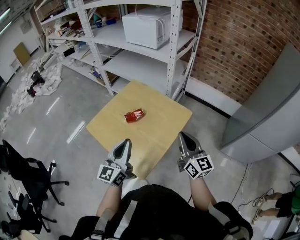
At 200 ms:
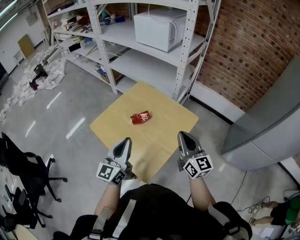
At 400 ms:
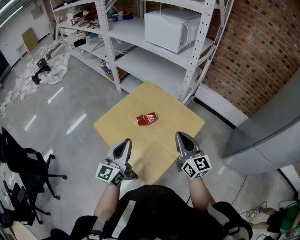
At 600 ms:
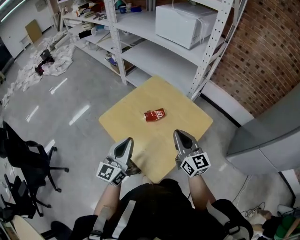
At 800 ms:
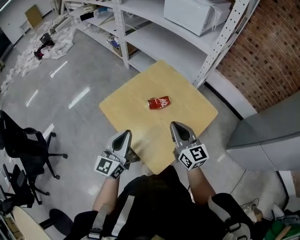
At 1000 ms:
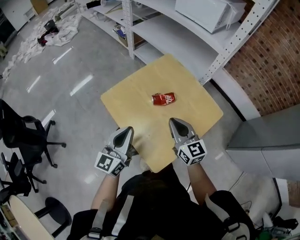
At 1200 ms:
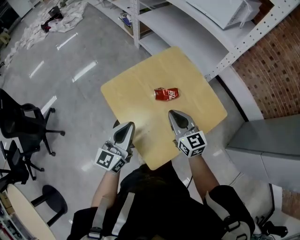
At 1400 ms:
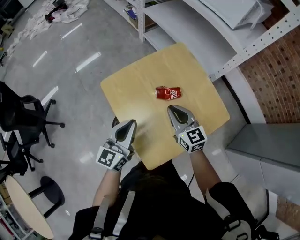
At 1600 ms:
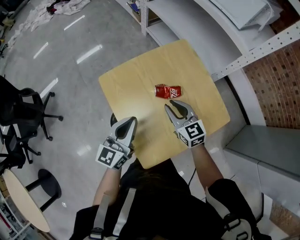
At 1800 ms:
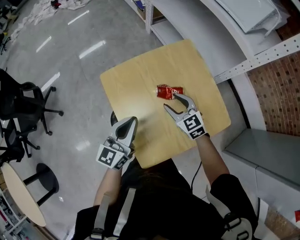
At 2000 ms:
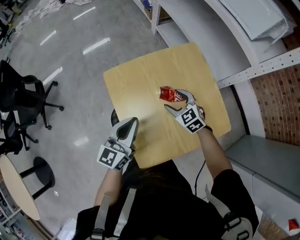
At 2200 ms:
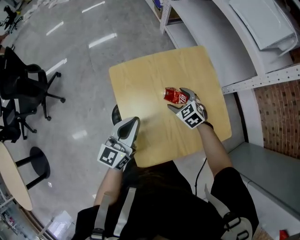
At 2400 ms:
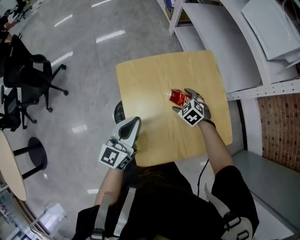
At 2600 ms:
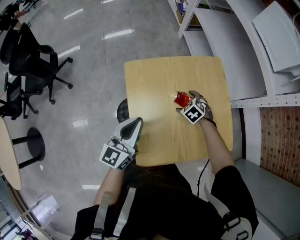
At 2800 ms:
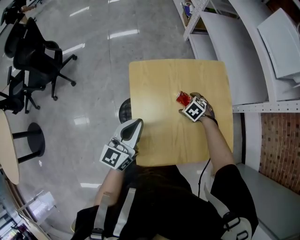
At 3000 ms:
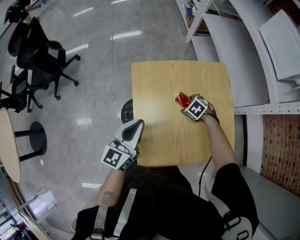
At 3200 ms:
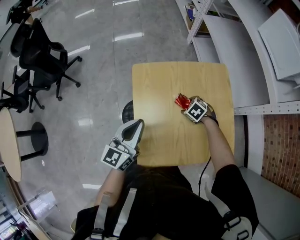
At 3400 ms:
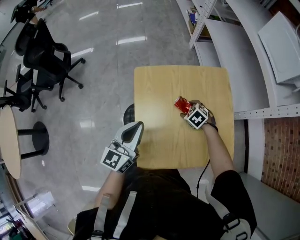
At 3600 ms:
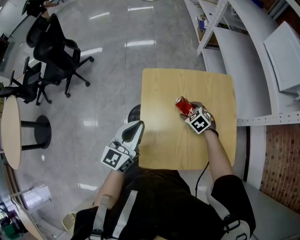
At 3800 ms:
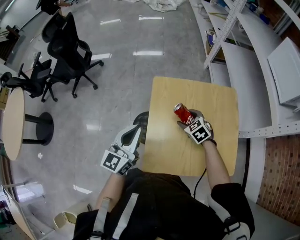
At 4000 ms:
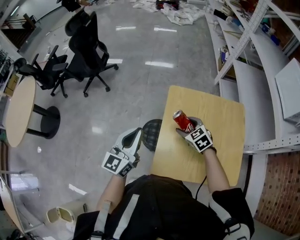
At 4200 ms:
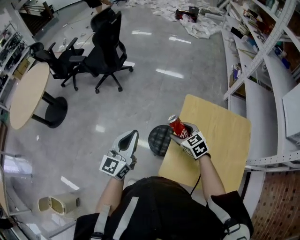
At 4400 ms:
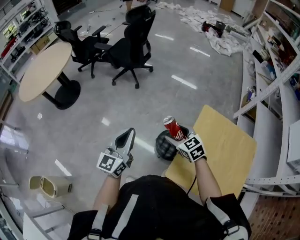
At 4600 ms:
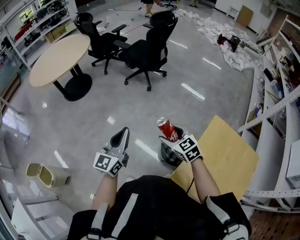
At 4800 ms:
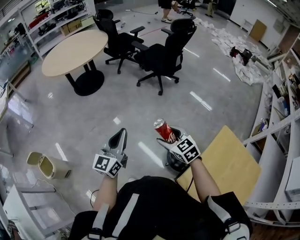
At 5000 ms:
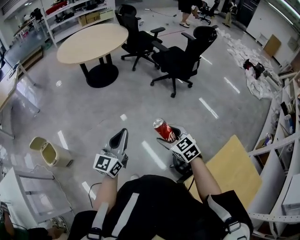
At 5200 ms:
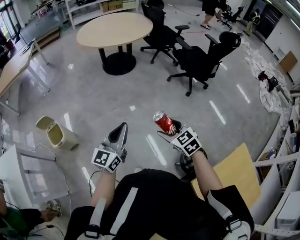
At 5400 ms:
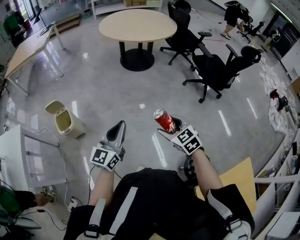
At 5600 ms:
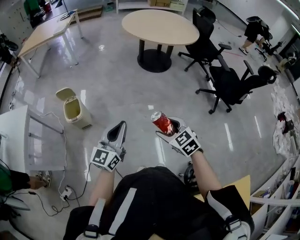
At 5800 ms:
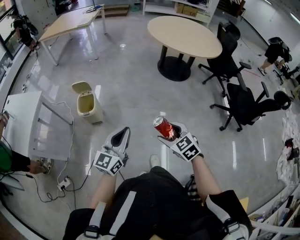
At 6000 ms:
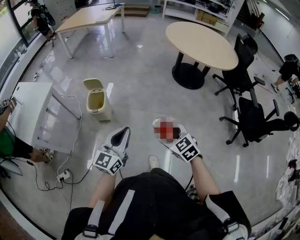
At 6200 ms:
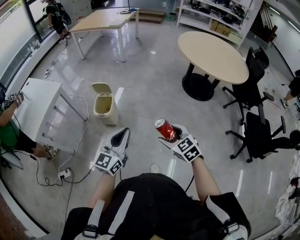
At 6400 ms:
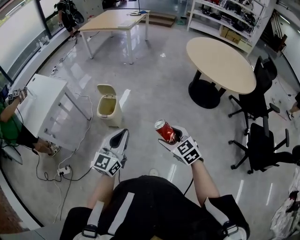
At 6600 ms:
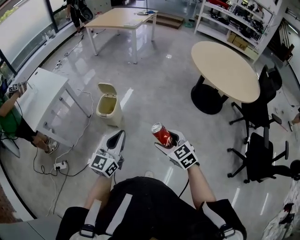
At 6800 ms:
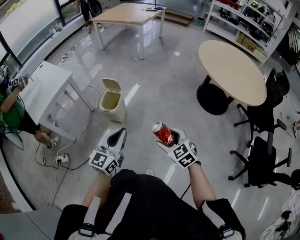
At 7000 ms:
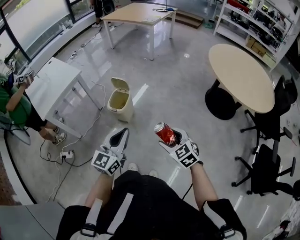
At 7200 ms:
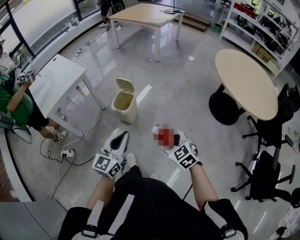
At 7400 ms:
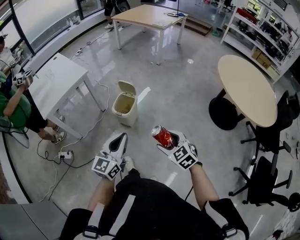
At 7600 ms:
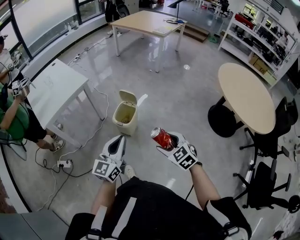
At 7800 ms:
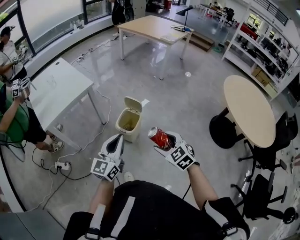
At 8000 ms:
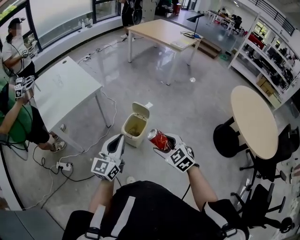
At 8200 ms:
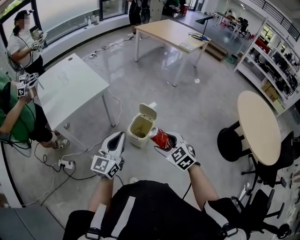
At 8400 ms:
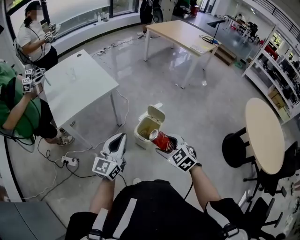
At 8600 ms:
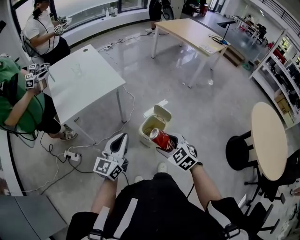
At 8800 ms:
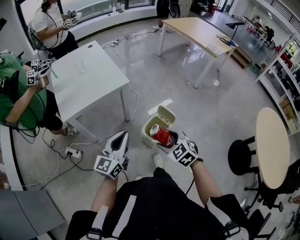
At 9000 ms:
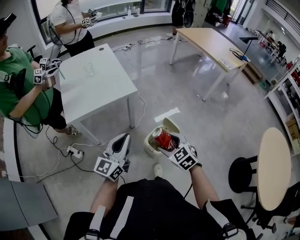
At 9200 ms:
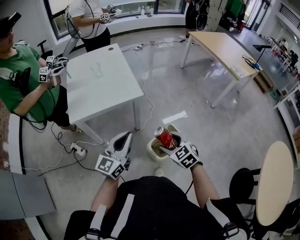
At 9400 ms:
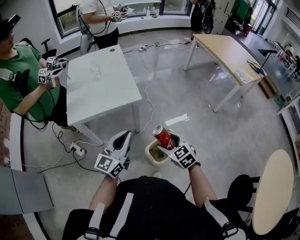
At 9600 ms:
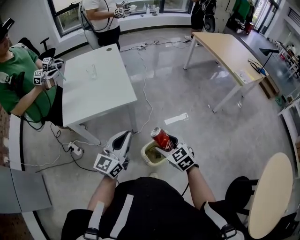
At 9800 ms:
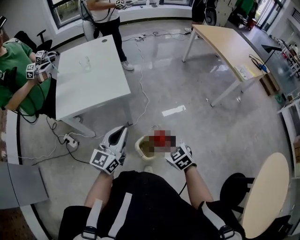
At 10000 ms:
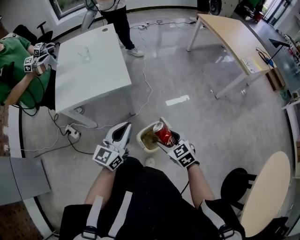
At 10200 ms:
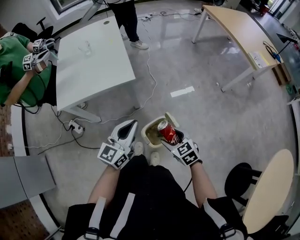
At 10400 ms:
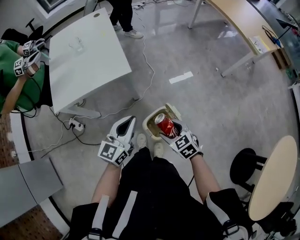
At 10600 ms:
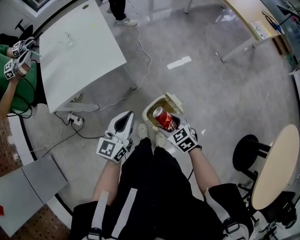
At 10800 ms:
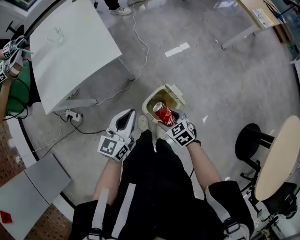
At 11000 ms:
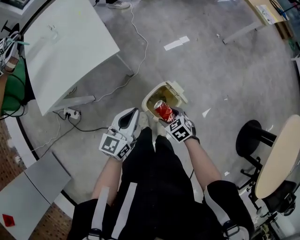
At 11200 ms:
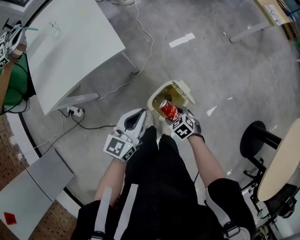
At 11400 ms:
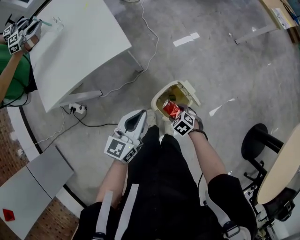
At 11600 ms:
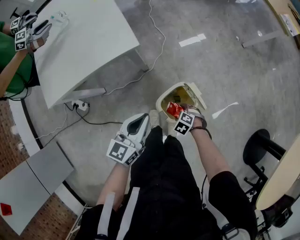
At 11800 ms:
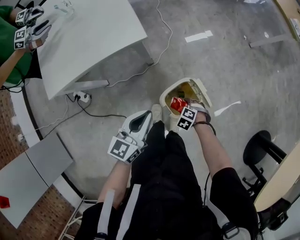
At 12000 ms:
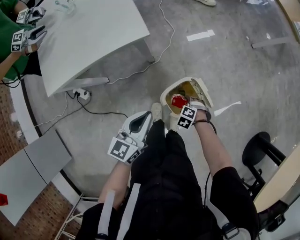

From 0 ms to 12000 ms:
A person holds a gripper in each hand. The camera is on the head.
From 0 ms to 1600 ms: The left gripper ends up approximately 20 cm from where it was, and rotates about 20 degrees. Meanwhile the right gripper moves some 35 cm, and turns by some 50 degrees.
From 1600 ms to 3000 ms: The right gripper heads downward, covering some 20 cm, tips its fingers downward by about 50 degrees, and opens up, while the left gripper rotates roughly 20 degrees.
From 3000 ms to 4400 ms: The right gripper changes place by about 50 cm, and tilts its fingers roughly 40 degrees upward. Meanwhile the left gripper ends up about 35 cm from where it was, and turns by about 40 degrees.
From 4400 ms to 6000 ms: The pair of grippers is taken roughly 60 cm. The left gripper rotates roughly 70 degrees, while the right gripper rotates about 80 degrees.
From 6000 ms to 7600 ms: The right gripper ends up approximately 25 cm from where it was, and rotates about 30 degrees. Meanwhile the left gripper changes place by some 20 cm, and changes its angle by about 30 degrees.
From 7600 ms to 9000 ms: The grippers both shift forward and to the left by roughly 35 cm. The right gripper swivels about 20 degrees. The left gripper turns by approximately 20 degrees.
From 9000 ms to 10400 ms: The right gripper goes some 15 cm downward, forward and to the right, while the left gripper travels to the right, forward and downward by some 20 cm.
From 10400 ms to 12000 ms: The right gripper goes roughly 30 cm downward, and angles its fingers downward, by about 40 degrees. Meanwhile the left gripper is displaced downward by some 15 cm.

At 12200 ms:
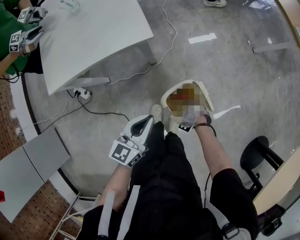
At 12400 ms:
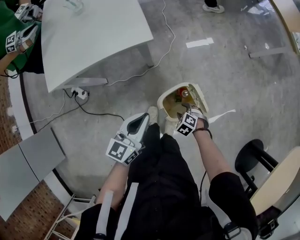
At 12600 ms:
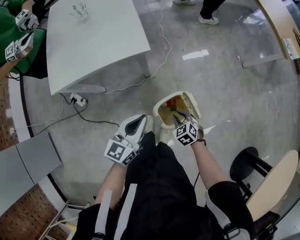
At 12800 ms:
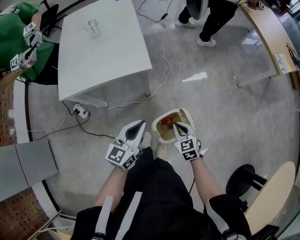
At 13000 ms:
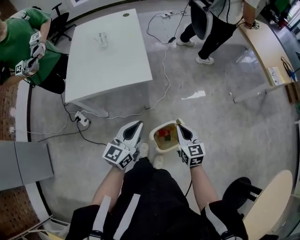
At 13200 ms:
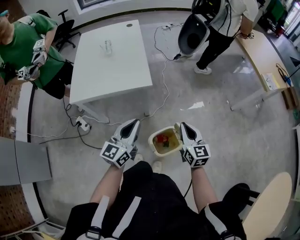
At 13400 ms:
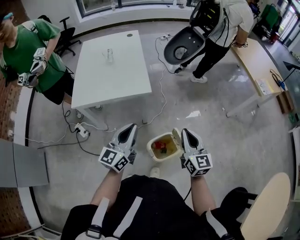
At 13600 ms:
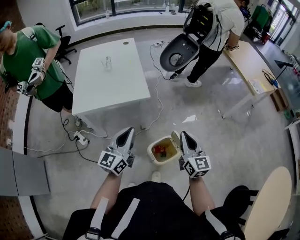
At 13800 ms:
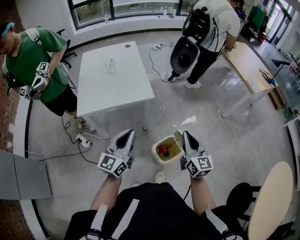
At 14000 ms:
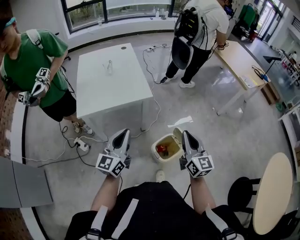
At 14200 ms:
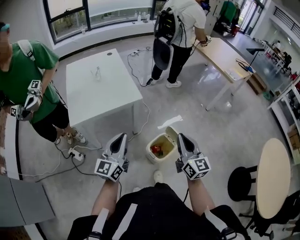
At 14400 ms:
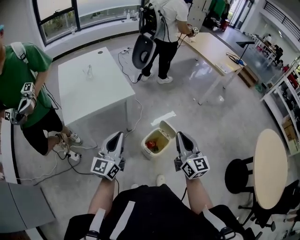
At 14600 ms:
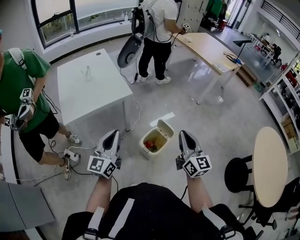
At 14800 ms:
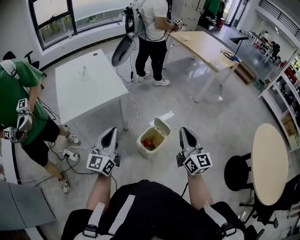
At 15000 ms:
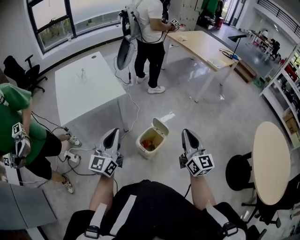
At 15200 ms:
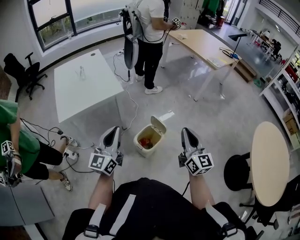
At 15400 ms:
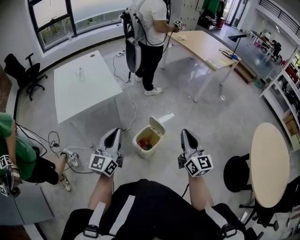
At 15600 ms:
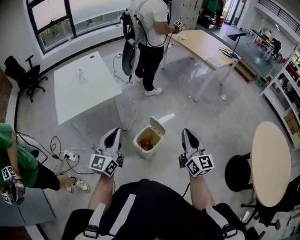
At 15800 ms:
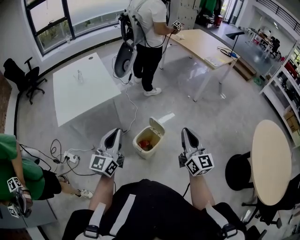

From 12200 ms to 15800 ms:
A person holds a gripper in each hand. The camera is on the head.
From 12200 ms to 14000 ms: The right gripper moves upward, about 50 cm, tips its fingers upward by approximately 80 degrees, and closes up, while the left gripper is displaced upward by about 25 cm, and rotates roughly 30 degrees.
From 14000 ms to 15800 ms: The right gripper moves to the right and backward, some 20 cm, while the left gripper goes approximately 10 cm to the right and backward.

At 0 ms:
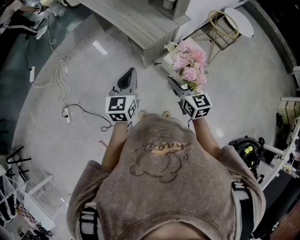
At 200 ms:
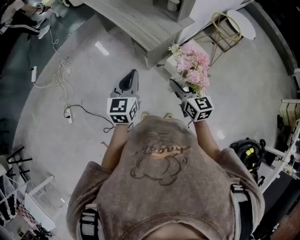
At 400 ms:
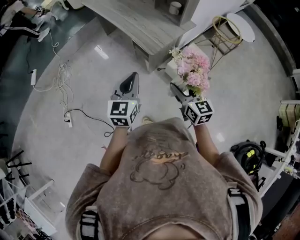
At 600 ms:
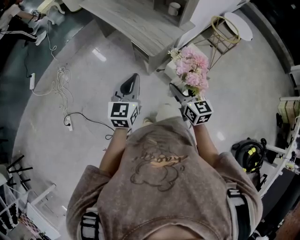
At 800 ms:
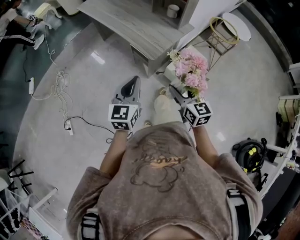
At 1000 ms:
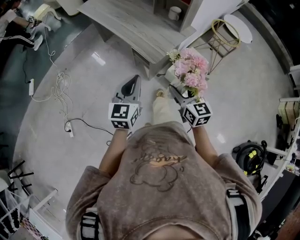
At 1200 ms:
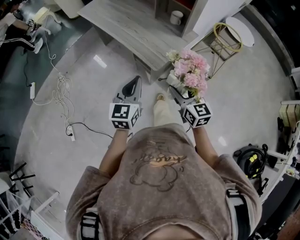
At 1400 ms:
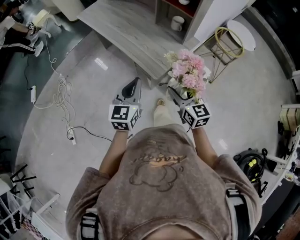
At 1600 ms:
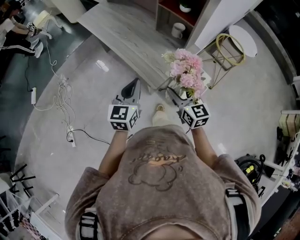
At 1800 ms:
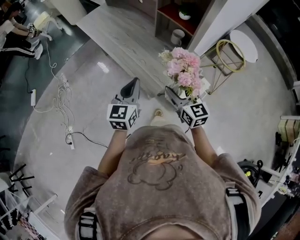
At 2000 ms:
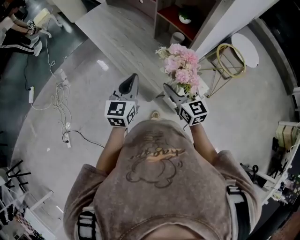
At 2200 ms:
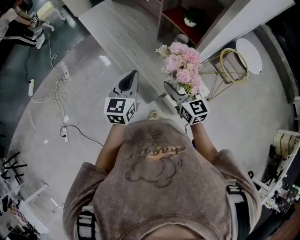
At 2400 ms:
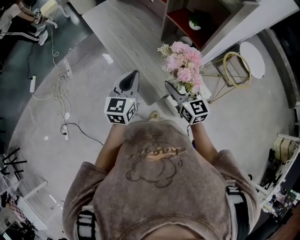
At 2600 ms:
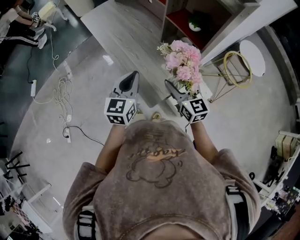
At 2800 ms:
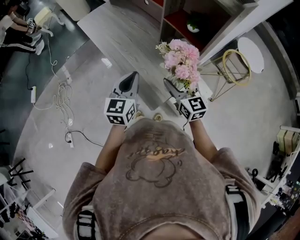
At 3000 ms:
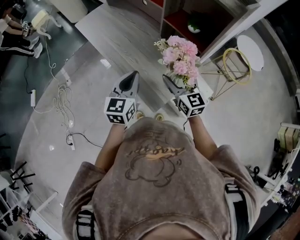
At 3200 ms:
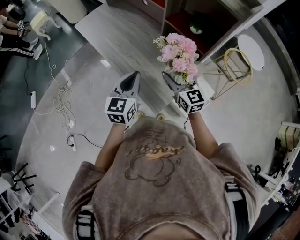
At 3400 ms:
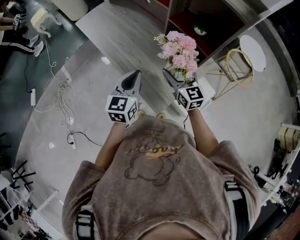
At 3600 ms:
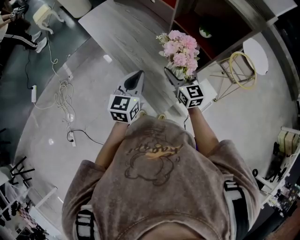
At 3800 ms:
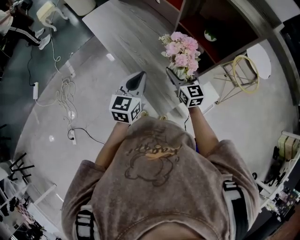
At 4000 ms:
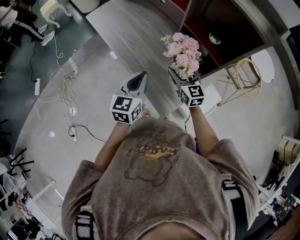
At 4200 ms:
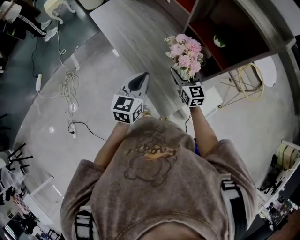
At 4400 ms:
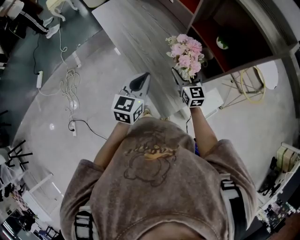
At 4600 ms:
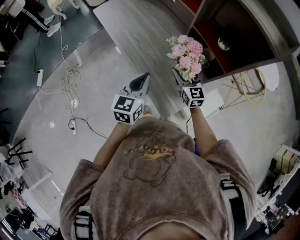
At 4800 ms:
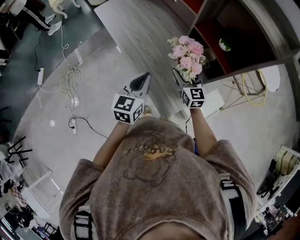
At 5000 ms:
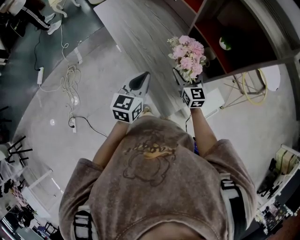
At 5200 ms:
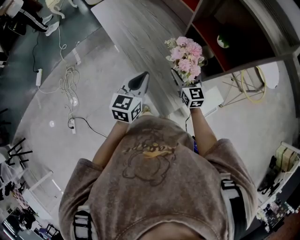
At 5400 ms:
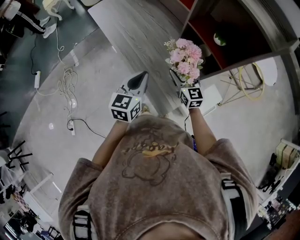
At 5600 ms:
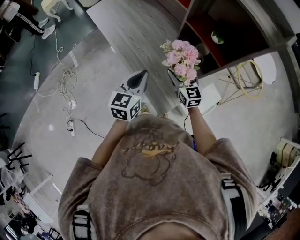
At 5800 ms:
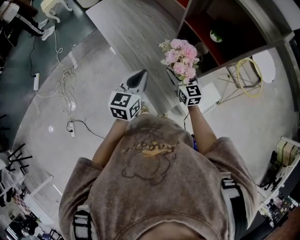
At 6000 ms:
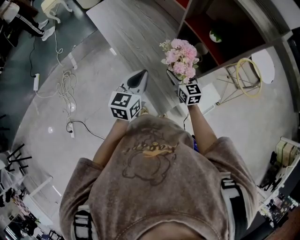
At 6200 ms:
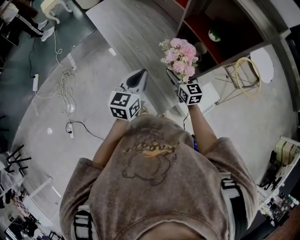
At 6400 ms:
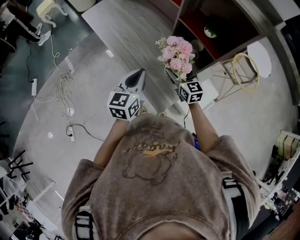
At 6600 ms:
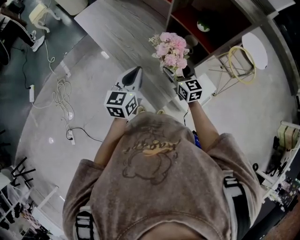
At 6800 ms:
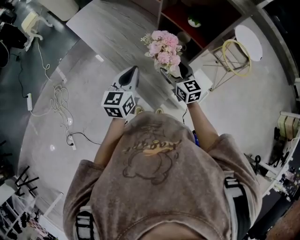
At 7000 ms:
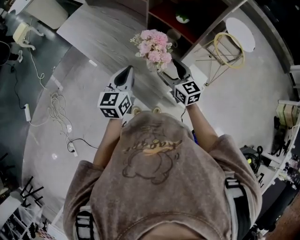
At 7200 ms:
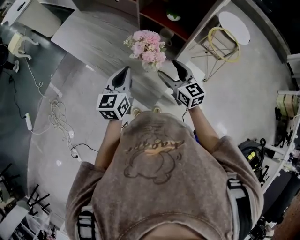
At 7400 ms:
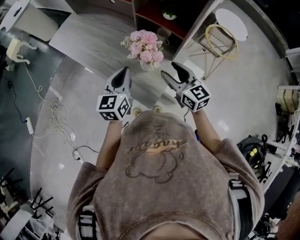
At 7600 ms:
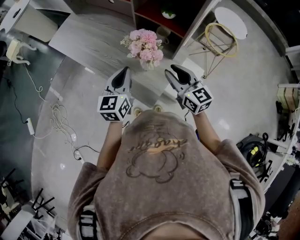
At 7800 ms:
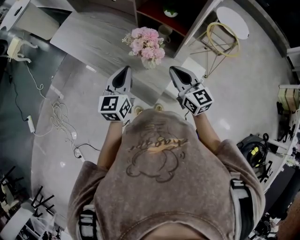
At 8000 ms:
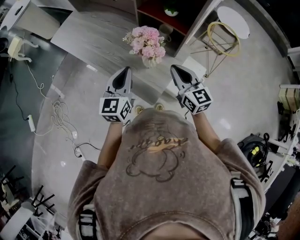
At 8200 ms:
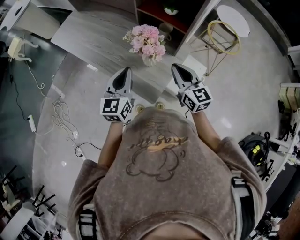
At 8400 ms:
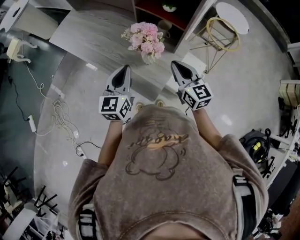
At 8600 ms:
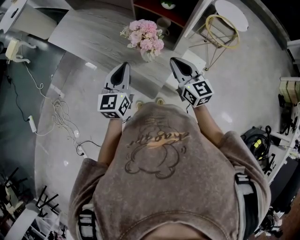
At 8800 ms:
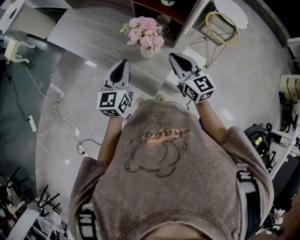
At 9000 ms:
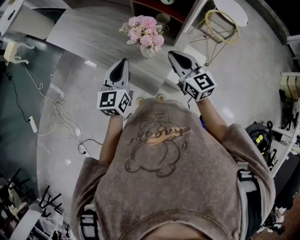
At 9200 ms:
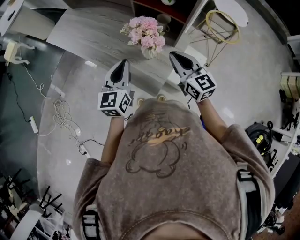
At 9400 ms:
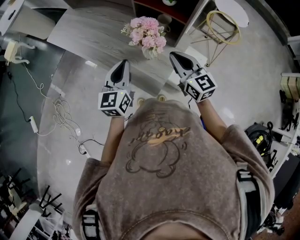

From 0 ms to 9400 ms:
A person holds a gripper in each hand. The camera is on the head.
From 0 ms to 1600 ms: The two grippers go roughly 20 cm forward.
From 1600 ms to 3200 ms: The two grippers go approximately 20 cm forward.
From 3200 ms to 4800 ms: The right gripper is displaced downward and forward by about 10 cm.
From 4800 ms to 6200 ms: There are only small adjustments of the grippers.
From 6200 ms to 7800 ms: The right gripper moves backward, upward and to the right, roughly 20 cm, and closes.
From 7800 ms to 9400 ms: The grippers stay close to where they were, moving slightly.
